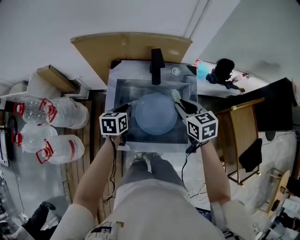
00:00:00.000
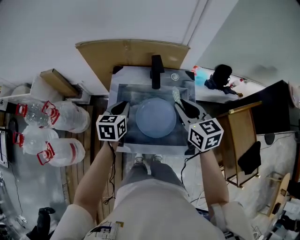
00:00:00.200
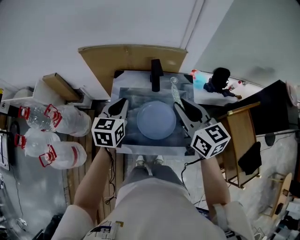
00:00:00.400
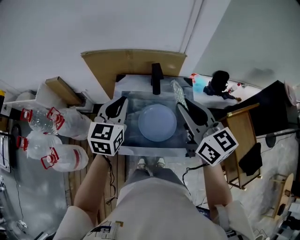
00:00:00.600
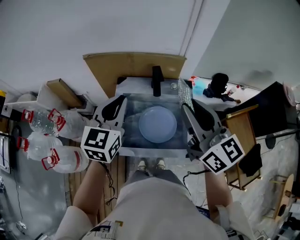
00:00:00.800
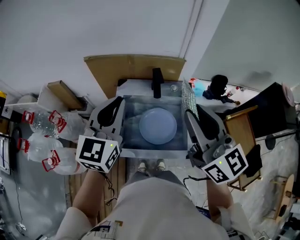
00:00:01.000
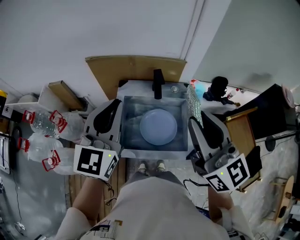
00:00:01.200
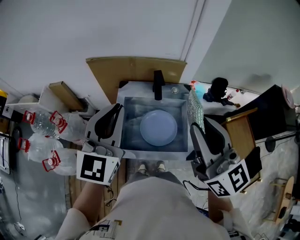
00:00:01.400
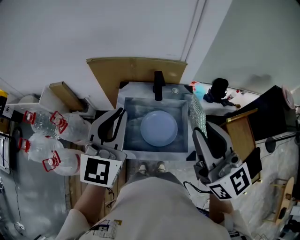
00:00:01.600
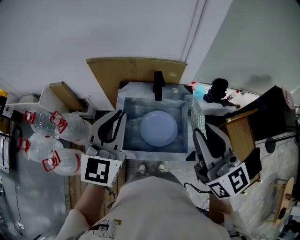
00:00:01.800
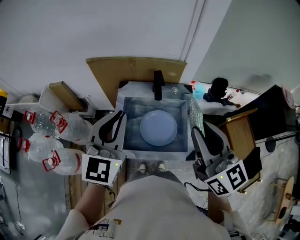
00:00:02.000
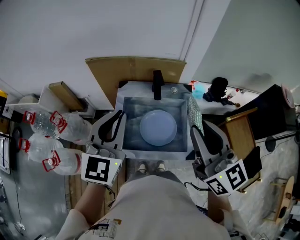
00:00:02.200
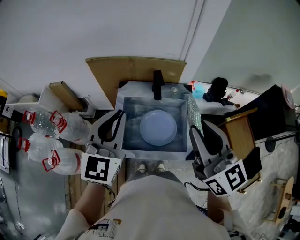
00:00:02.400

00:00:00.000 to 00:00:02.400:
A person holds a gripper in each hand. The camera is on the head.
00:00:00.000 to 00:00:01.200: The two grippers go some 35 cm upward. The left gripper points its fingers roughly 40 degrees further upward. Meanwhile the right gripper tilts its fingers approximately 40 degrees upward.
00:00:01.200 to 00:00:02.400: There are only small adjustments of the grippers.

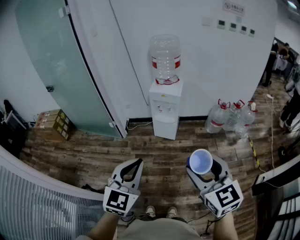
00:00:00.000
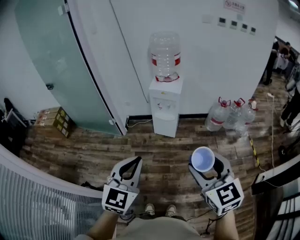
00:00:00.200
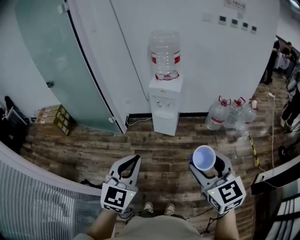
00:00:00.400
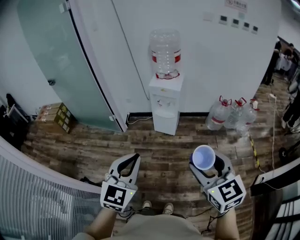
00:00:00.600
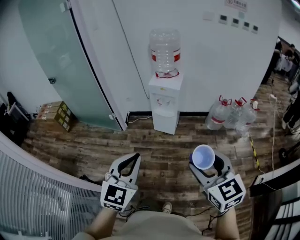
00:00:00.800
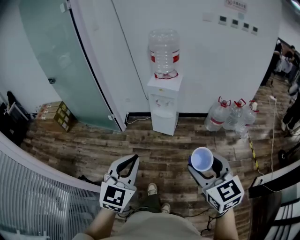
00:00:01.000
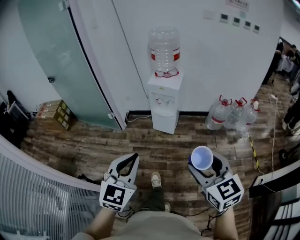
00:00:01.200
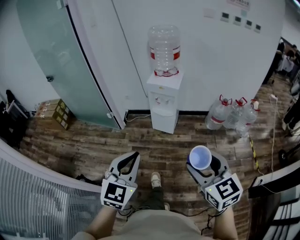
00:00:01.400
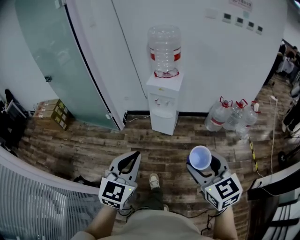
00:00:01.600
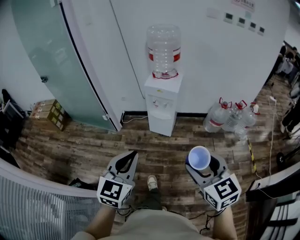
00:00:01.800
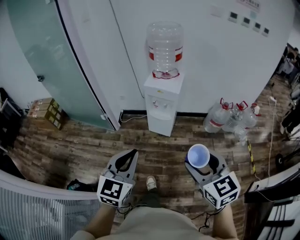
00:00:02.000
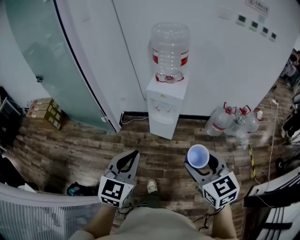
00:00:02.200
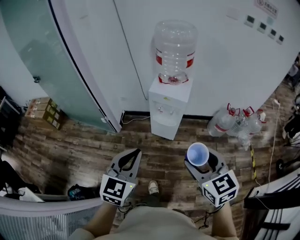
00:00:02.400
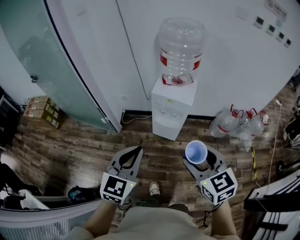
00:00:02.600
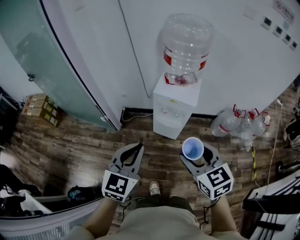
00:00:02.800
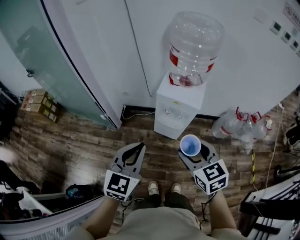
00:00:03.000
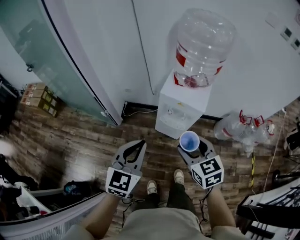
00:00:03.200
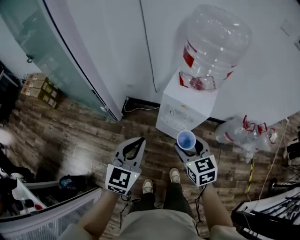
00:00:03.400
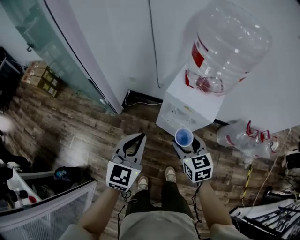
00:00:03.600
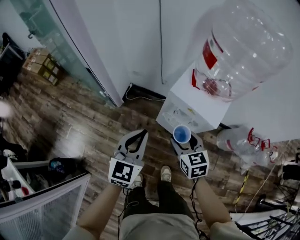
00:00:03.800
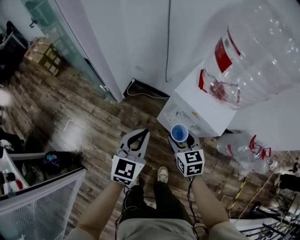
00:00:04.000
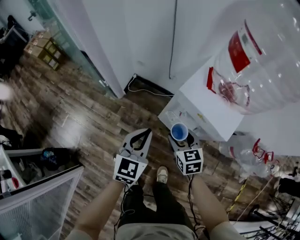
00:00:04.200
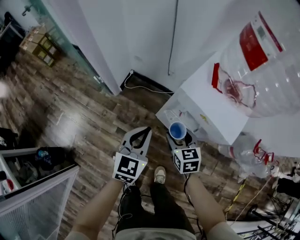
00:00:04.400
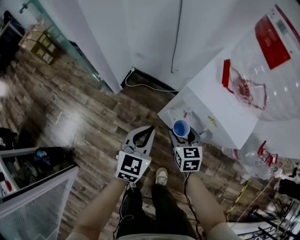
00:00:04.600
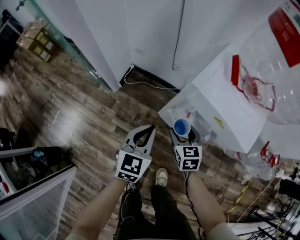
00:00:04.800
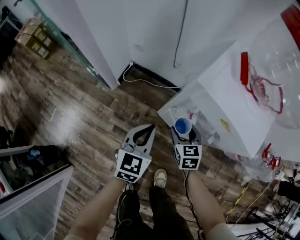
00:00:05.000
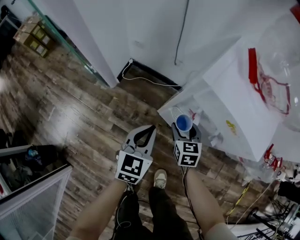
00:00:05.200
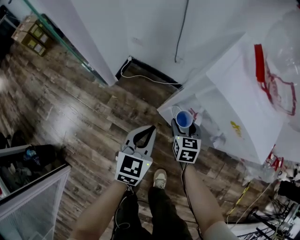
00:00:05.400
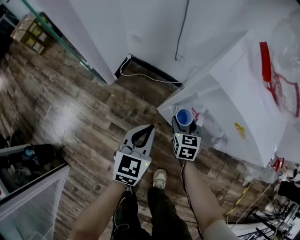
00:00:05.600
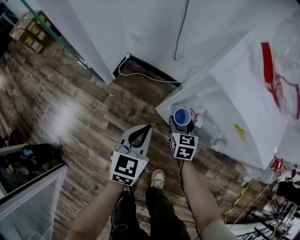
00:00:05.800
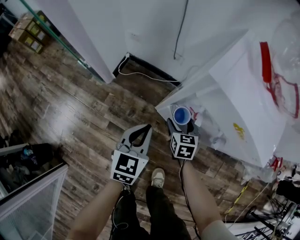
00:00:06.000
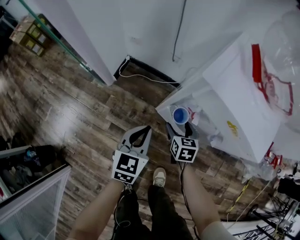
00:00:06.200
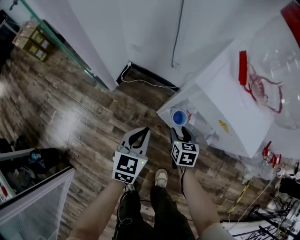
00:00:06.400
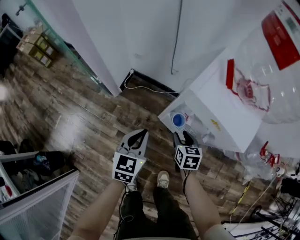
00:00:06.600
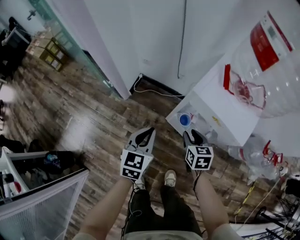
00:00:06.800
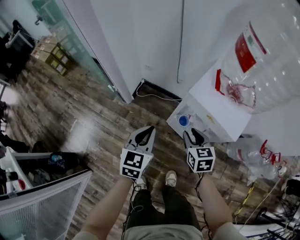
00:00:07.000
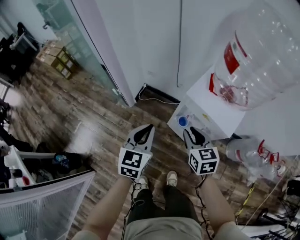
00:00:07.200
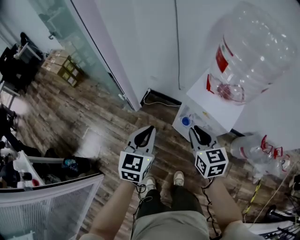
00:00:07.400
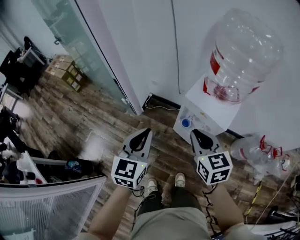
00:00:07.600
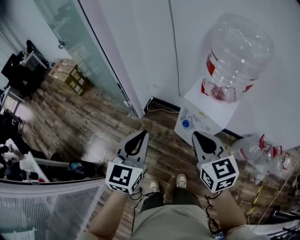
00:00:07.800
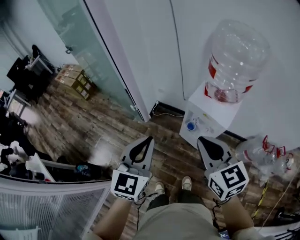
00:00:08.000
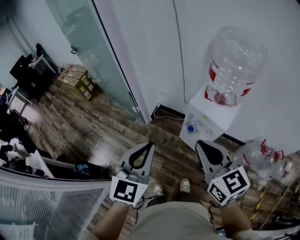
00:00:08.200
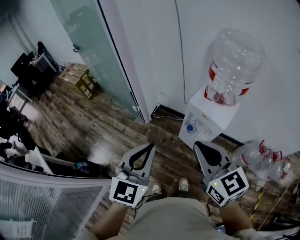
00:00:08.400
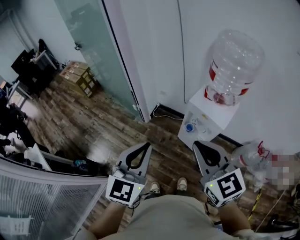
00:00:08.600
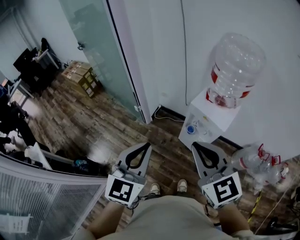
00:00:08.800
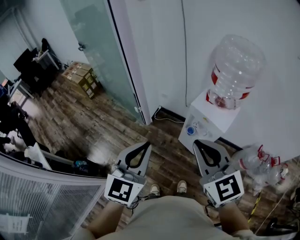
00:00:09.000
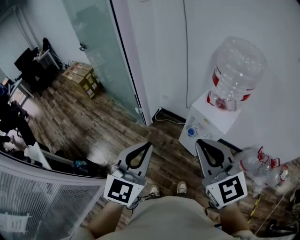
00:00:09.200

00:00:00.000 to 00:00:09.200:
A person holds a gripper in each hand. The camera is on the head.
00:00:00.000 to 00:00:01.600: The left gripper is displaced to the right by roughly 5 cm; the right gripper heads to the right and downward, covering approximately 10 cm.
00:00:01.600 to 00:00:03.000: Both grippers move forward, some 35 cm.
00:00:03.000 to 00:00:04.600: The two grippers go about 40 cm downward and forward. The left gripper turns by approximately 20 degrees.
00:00:04.600 to 00:00:06.200: The two grippers go roughly 15 cm downward.
00:00:06.200 to 00:00:07.600: Both grippers travel together upward, roughly 50 cm. The right gripper turns by roughly 30 degrees, and closes.
00:00:07.600 to 00:00:09.200: Both grippers travel together upward and backward, about 25 cm. The right gripper turns by approximately 30 degrees.

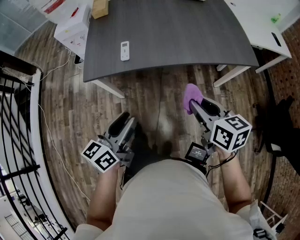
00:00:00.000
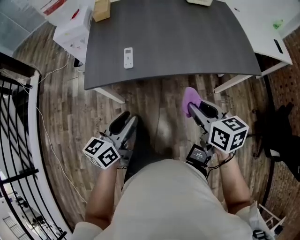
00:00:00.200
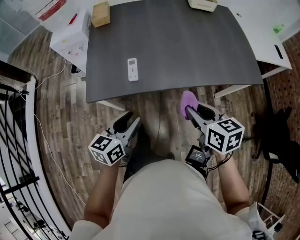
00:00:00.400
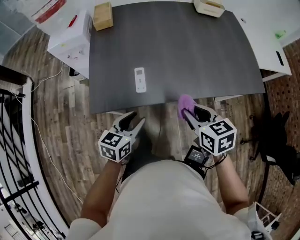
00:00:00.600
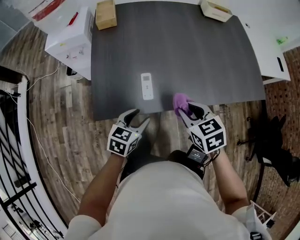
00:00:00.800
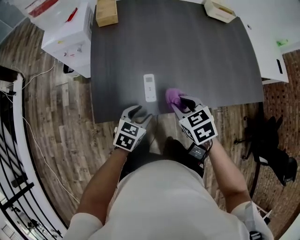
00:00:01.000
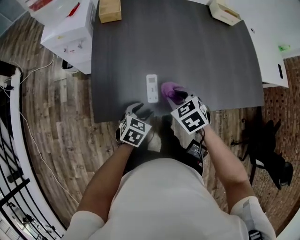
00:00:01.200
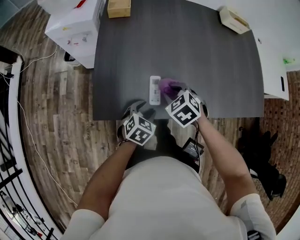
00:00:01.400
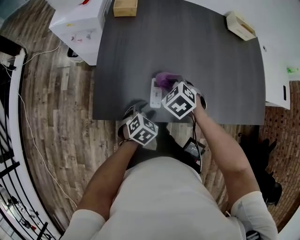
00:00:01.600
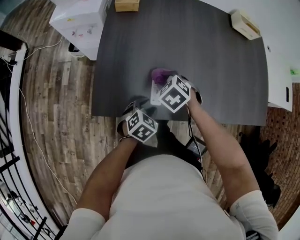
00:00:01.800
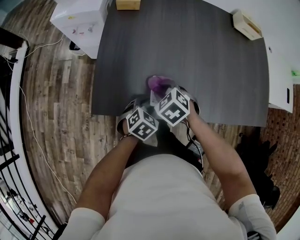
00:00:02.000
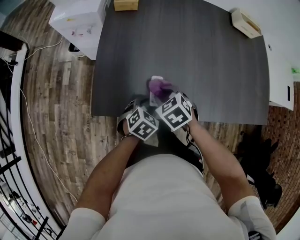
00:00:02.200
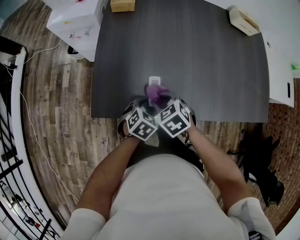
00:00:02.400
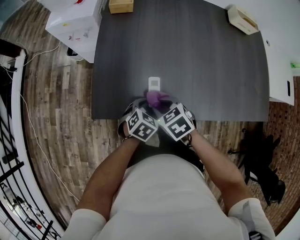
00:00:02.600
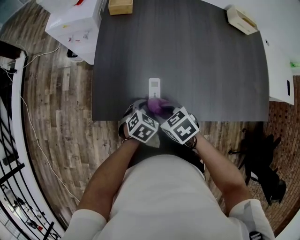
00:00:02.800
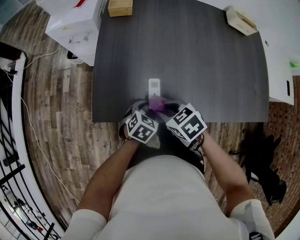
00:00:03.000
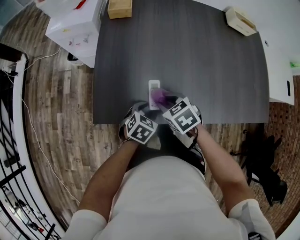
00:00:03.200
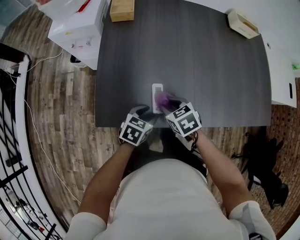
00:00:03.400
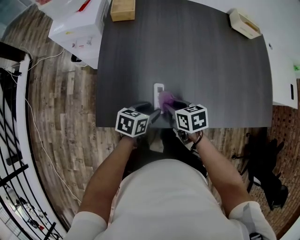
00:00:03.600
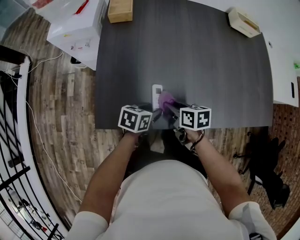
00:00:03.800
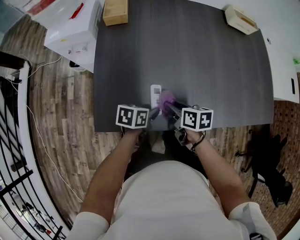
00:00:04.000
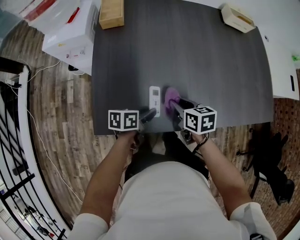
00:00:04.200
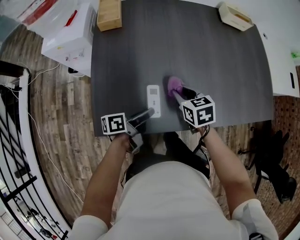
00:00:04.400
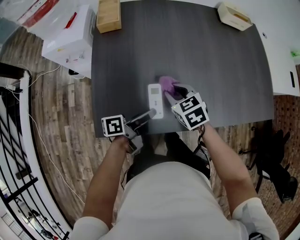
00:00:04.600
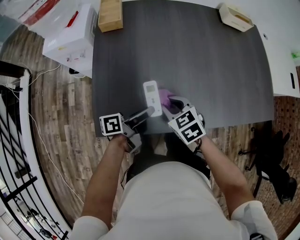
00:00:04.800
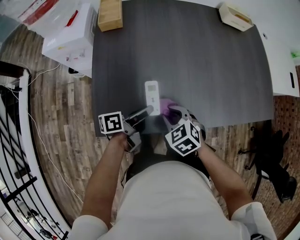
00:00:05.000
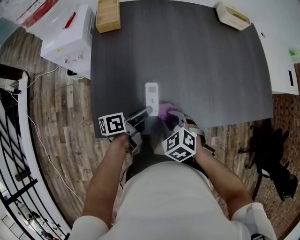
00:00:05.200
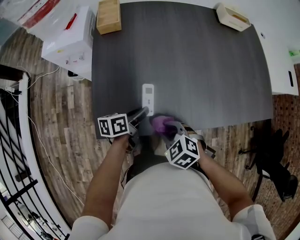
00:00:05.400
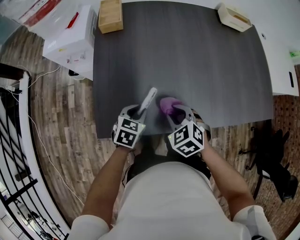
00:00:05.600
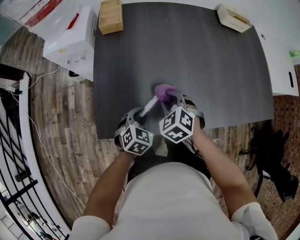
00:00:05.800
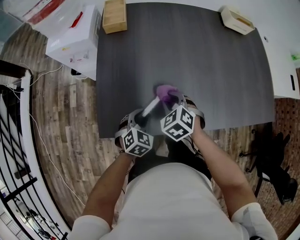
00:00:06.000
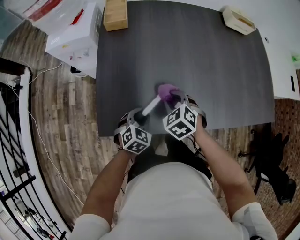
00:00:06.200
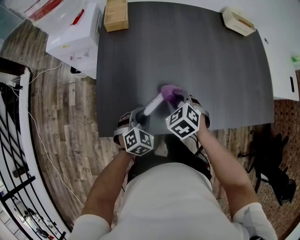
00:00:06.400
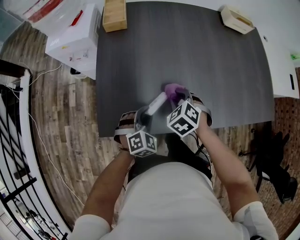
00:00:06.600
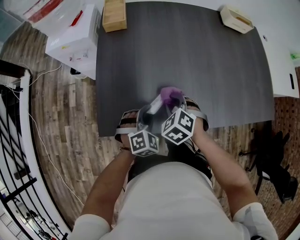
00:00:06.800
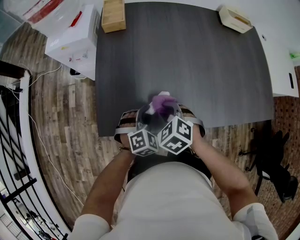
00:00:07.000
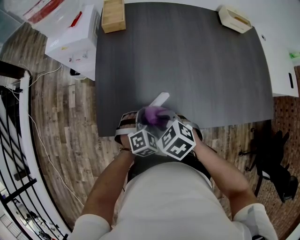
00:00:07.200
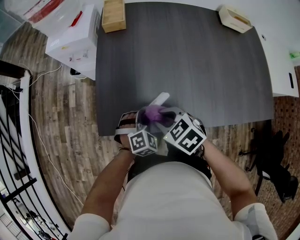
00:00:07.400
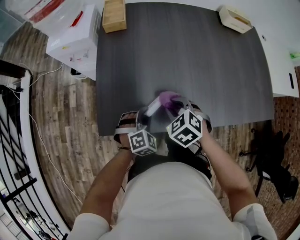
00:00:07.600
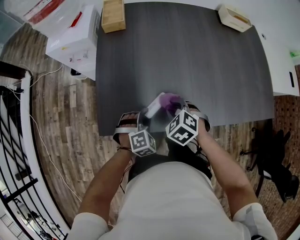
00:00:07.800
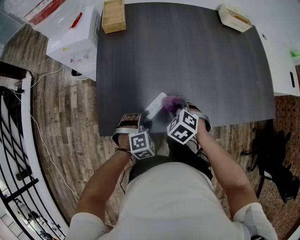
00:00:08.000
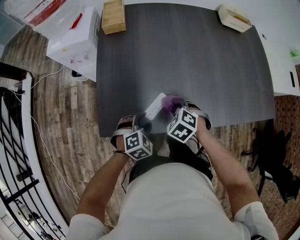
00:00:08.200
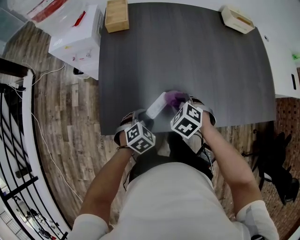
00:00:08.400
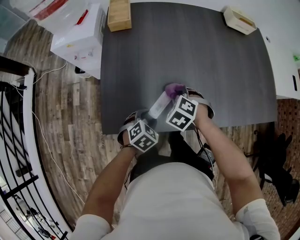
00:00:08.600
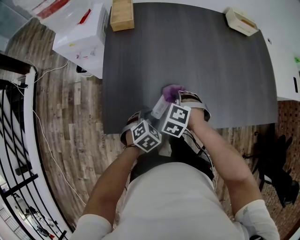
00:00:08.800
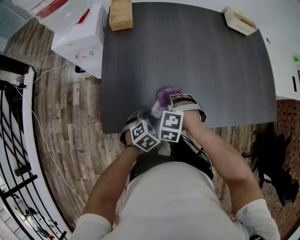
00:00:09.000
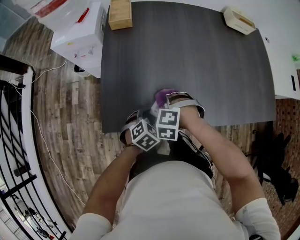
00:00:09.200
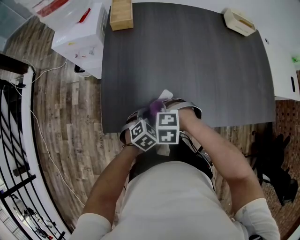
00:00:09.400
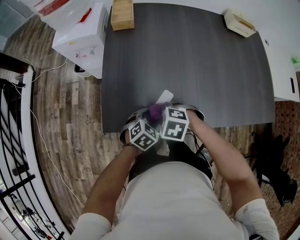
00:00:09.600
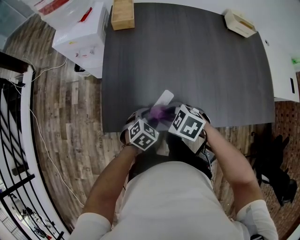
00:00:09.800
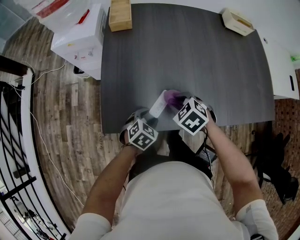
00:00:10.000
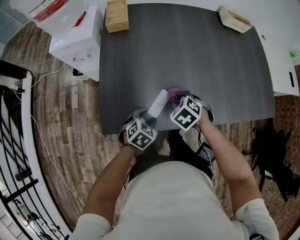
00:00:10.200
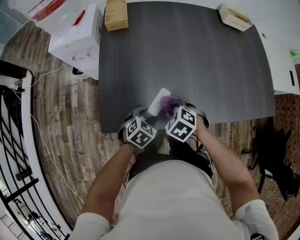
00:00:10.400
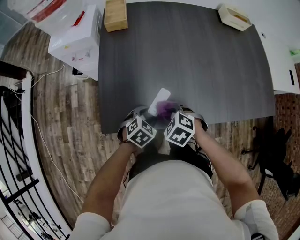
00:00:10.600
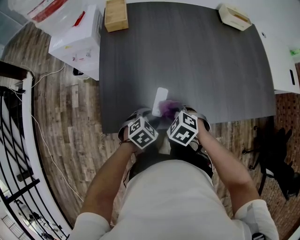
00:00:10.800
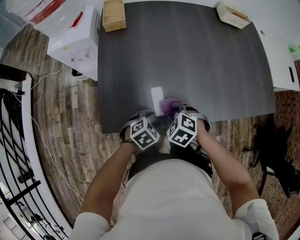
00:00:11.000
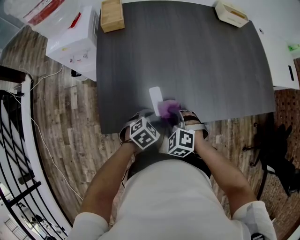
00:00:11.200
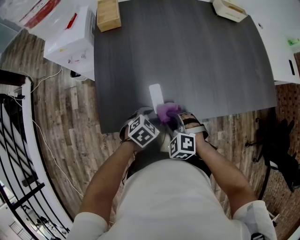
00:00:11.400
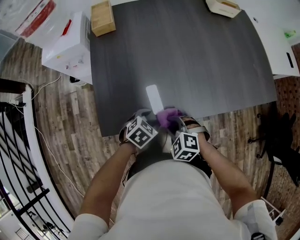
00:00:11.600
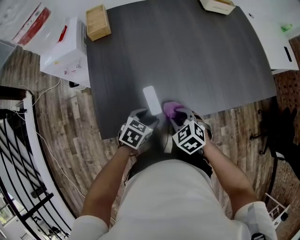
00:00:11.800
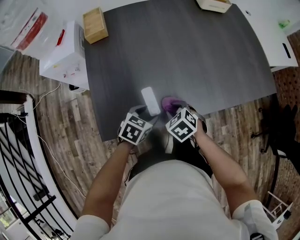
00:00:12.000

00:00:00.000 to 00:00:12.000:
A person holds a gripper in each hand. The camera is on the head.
00:00:00.000 to 00:00:01.600: The right gripper goes approximately 50 cm forward, to the left and downward, and rolls counterclockwise, seen from behind, by about 50 degrees; the left gripper is displaced forward and downward by roughly 35 cm, and tilts its fingers roughly 40 degrees downward.
00:00:01.600 to 00:00:03.000: The right gripper travels backward by approximately 10 cm, and rotates about 30 degrees.
00:00:03.000 to 00:00:04.400: The right gripper moves roughly 15 cm, and swivels some 30 degrees; the left gripper is displaced upward by roughly 5 cm, and rolls counterclockwise, seen from behind, by approximately 60 degrees.
00:00:04.400 to 00:00:06.000: The left gripper rotates around the line of its fingers by roughly 80 degrees, clockwise from behind. Meanwhile the right gripper shifts about 5 cm to the left, moves approximately 15 cm backward and comes back, and rotates some 40 degrees.
00:00:06.000 to 00:00:07.600: The left gripper changes its angle by approximately 20 degrees.
00:00:07.600 to 00:00:09.000: The left gripper turns by some 30 degrees. The right gripper travels downward by roughly 5 cm, and rotates about 40 degrees.
00:00:09.000 to 00:00:10.400: The right gripper turns by some 30 degrees.
00:00:10.400 to 00:00:12.000: The right gripper reaches about 10 cm backward, then returns, and rotates some 20 degrees.
